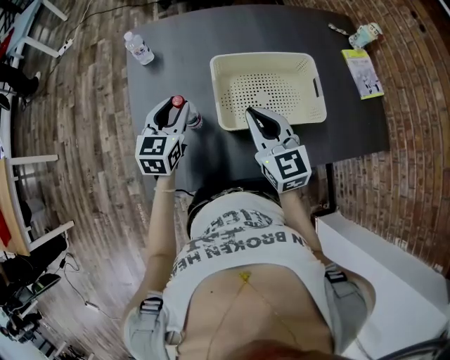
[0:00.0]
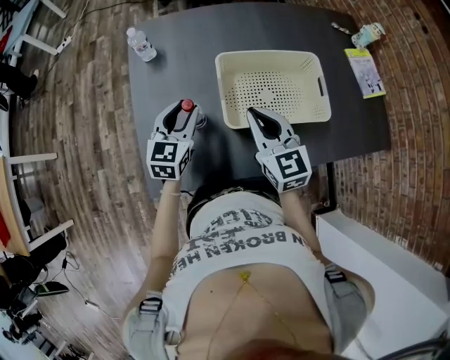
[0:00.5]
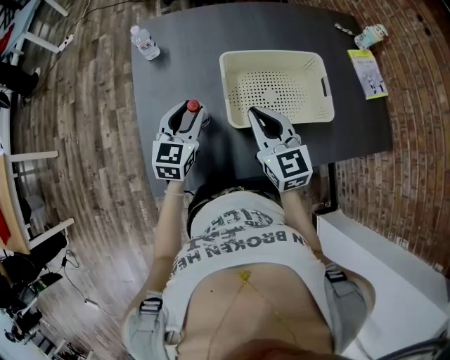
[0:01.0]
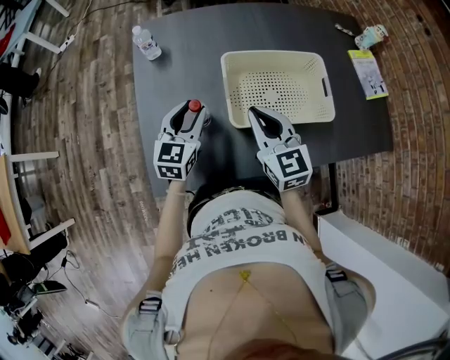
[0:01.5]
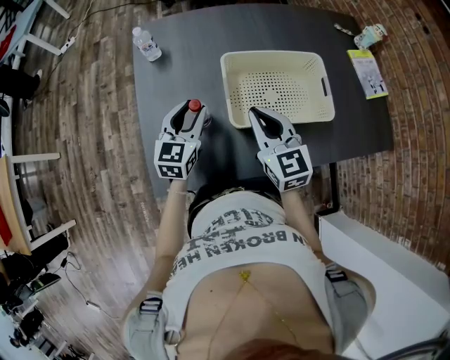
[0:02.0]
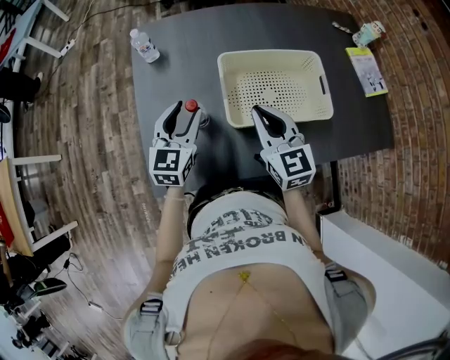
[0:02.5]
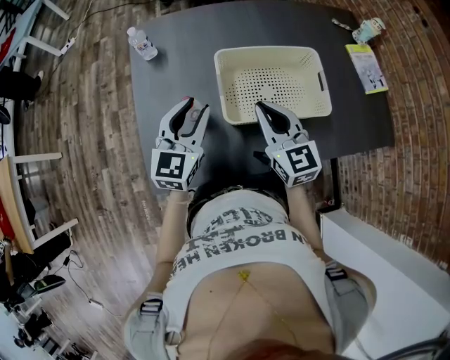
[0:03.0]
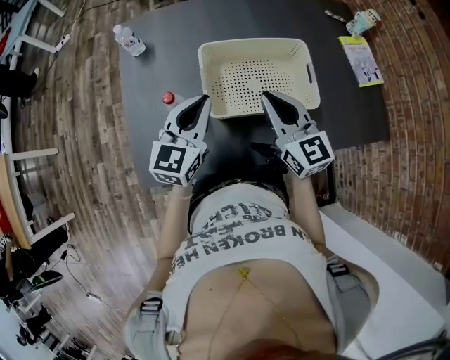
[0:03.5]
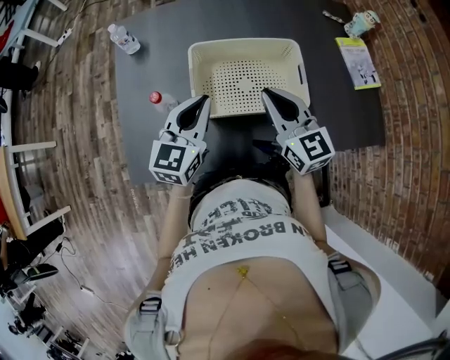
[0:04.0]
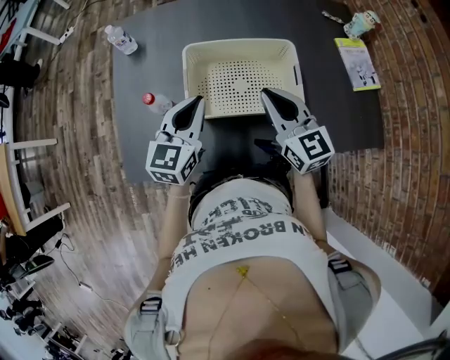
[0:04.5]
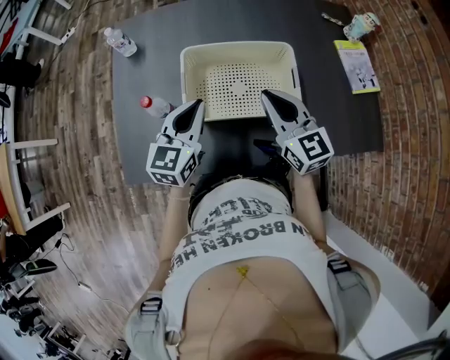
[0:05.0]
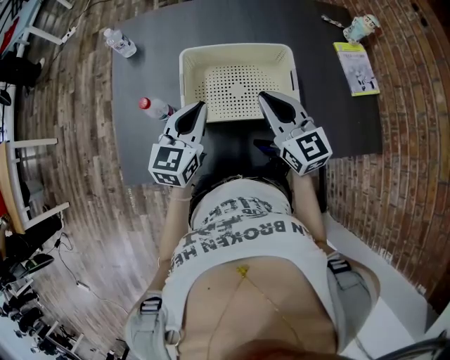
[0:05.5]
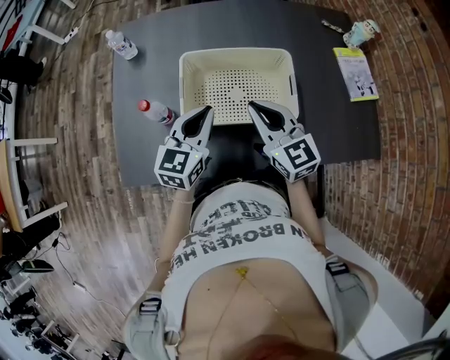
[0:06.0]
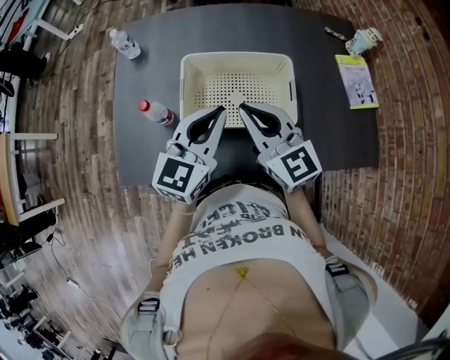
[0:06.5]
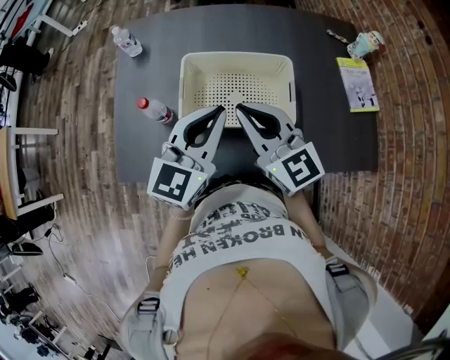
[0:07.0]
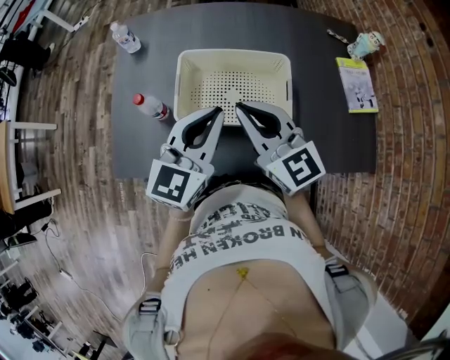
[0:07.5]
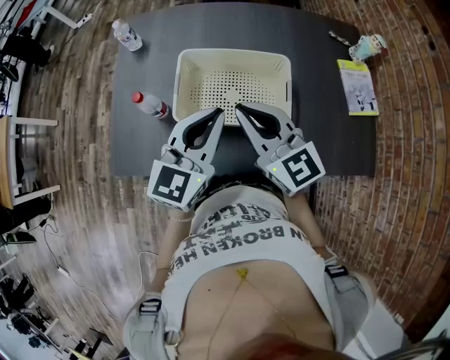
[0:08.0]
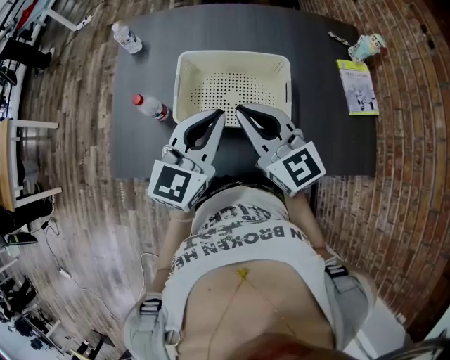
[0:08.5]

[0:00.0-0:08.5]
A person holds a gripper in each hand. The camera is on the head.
0:00.0 to 0:02.0: The grippers stay close to where they were, moving slightly.
0:02.0 to 0:04.0: The left gripper heads to the right and upward, covering some 15 cm, and closes, while the right gripper moves to the right, roughly 15 cm.
0:04.0 to 0:06.5: The left gripper shifts roughly 10 cm to the right and upward.
0:06.5 to 0:08.5: The grippers make only small movements.

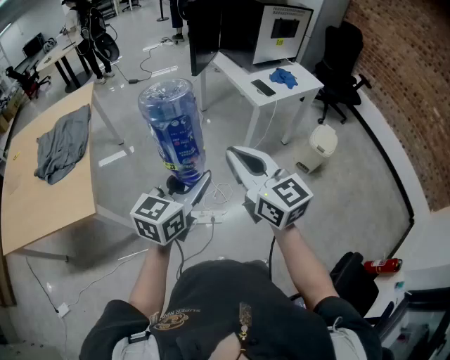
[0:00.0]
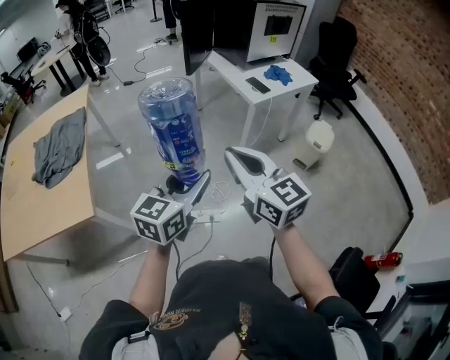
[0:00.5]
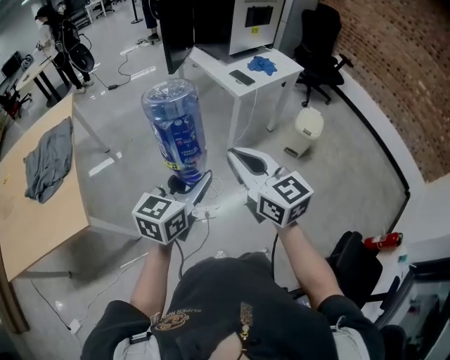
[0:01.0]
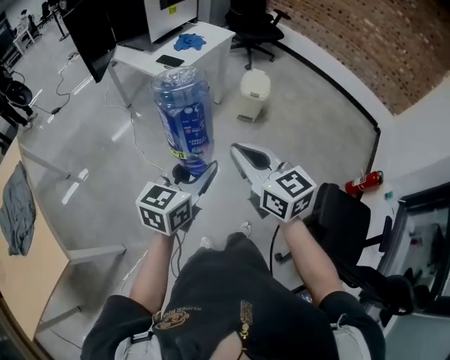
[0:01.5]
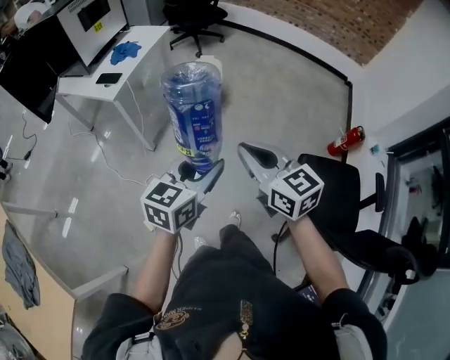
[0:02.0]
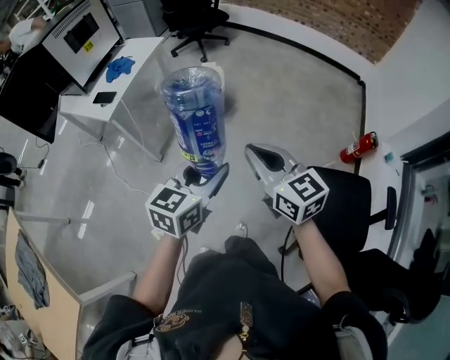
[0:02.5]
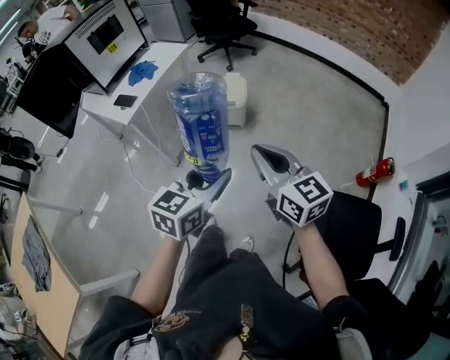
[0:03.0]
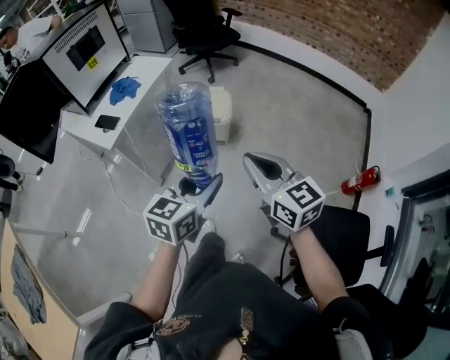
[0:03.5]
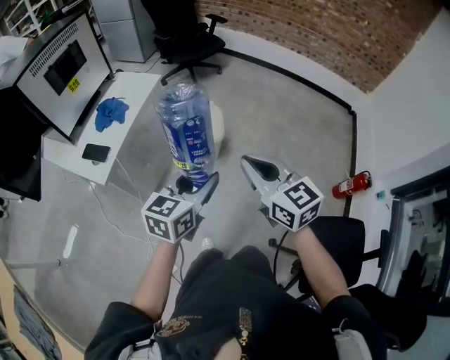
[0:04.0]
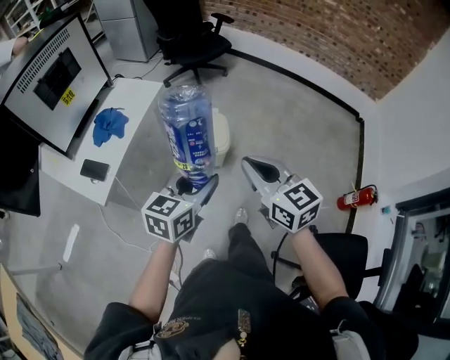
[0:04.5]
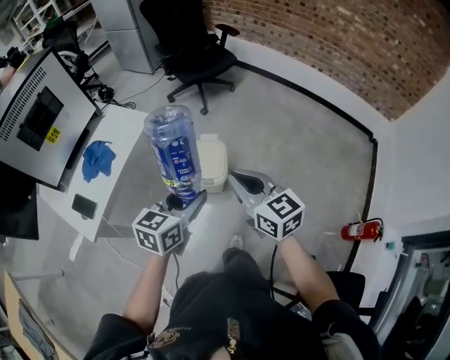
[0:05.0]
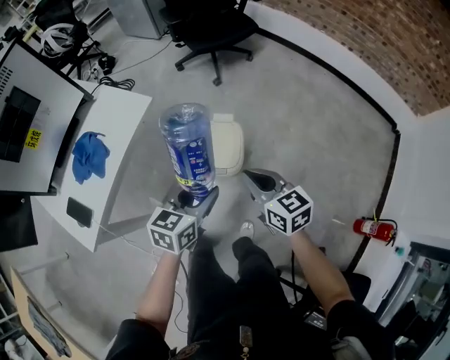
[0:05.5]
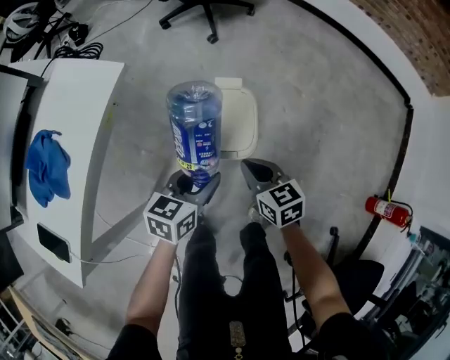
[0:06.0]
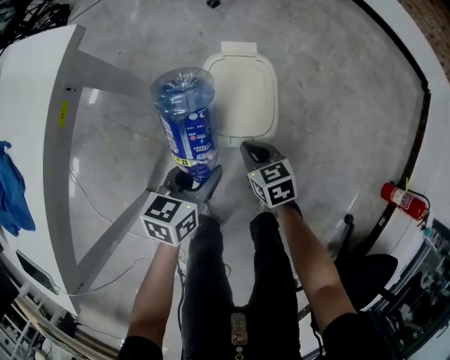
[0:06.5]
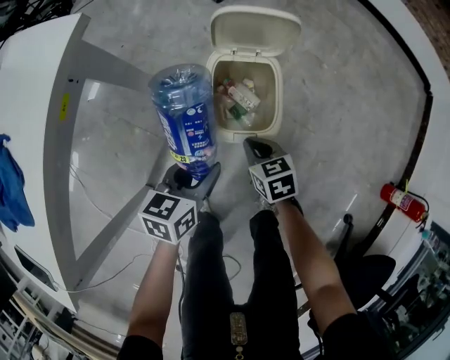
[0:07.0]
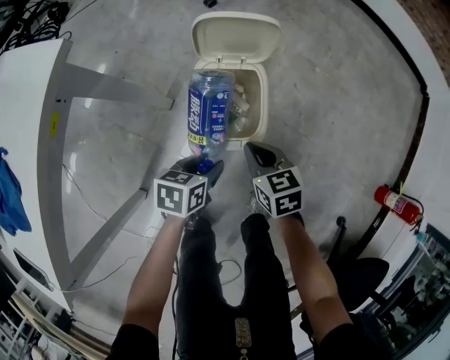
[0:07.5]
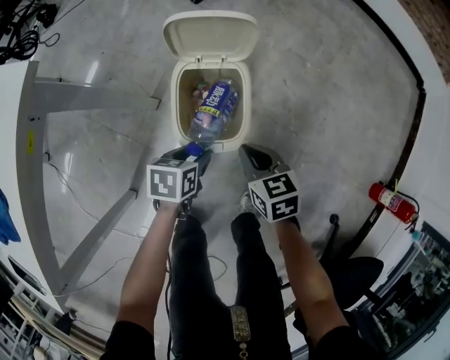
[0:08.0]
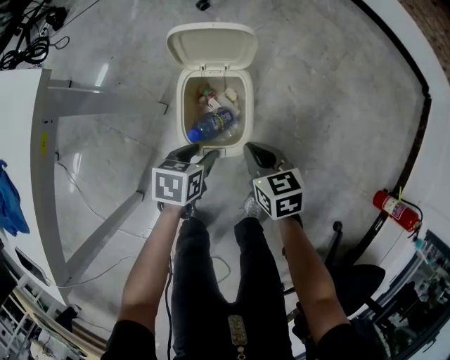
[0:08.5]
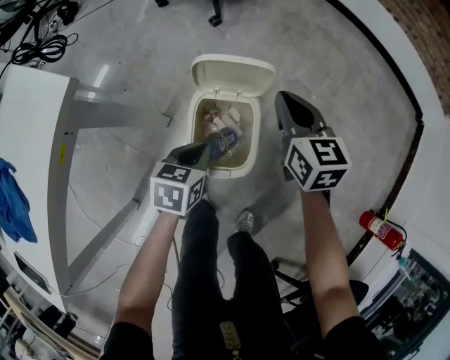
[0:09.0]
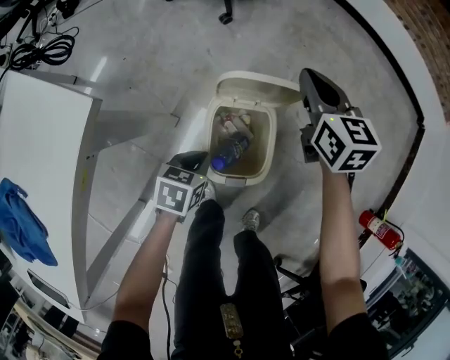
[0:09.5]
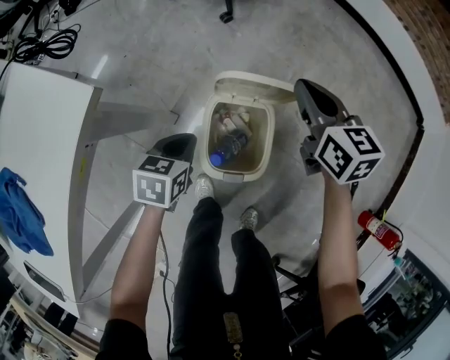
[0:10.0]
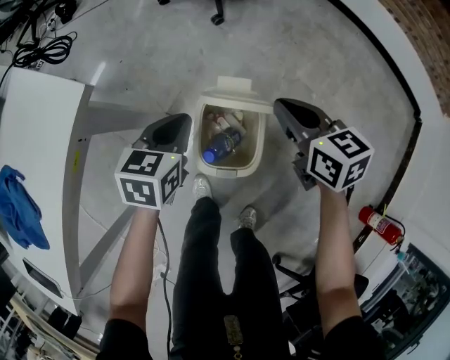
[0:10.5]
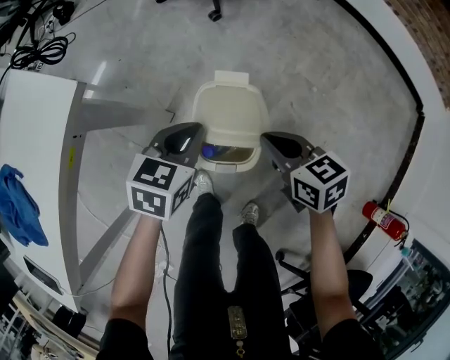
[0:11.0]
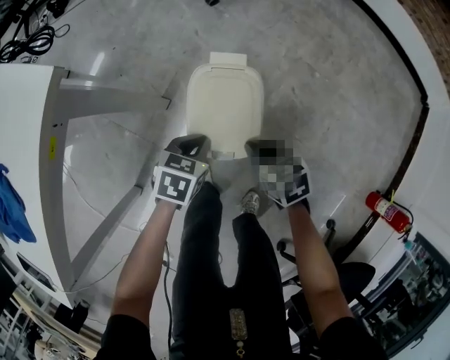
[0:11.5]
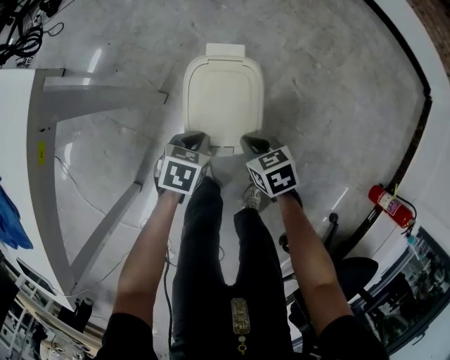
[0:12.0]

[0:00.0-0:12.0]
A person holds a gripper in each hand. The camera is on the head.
0:00.0 to 0:02.0: The right gripper changes place by approximately 40 cm, and swivels some 40 degrees, while the left gripper ends up roughly 40 cm from where it was, and rotates approximately 50 degrees.
0:02.0 to 0:04.0: Both grippers travel together forward, some 35 cm.
0:04.0 to 0:06.0: The right gripper is displaced downward and forward by approximately 60 cm, and rotates roughly 30 degrees, while the left gripper heads forward and downward, covering about 50 cm, and turns by some 20 degrees.
0:06.0 to 0:08.0: The right gripper heads downward, covering some 15 cm. Meanwhile the left gripper travels downward by approximately 20 cm, and turns by some 30 degrees.
0:08.0 to 0:10.0: The right gripper goes approximately 30 cm forward and upward. The left gripper shifts about 20 cm to the left, forward and upward, and closes its fingers.
0:10.0 to 0:12.0: The right gripper shifts roughly 30 cm backward and downward, and rotates some 30 degrees, while the left gripper travels downward, backward and to the right by roughly 15 cm.

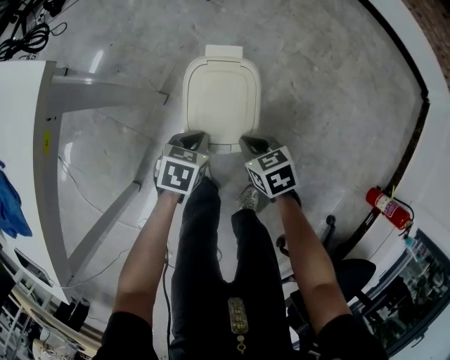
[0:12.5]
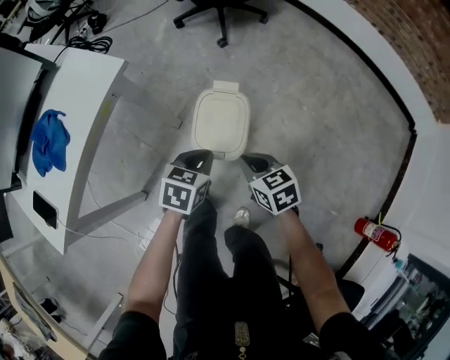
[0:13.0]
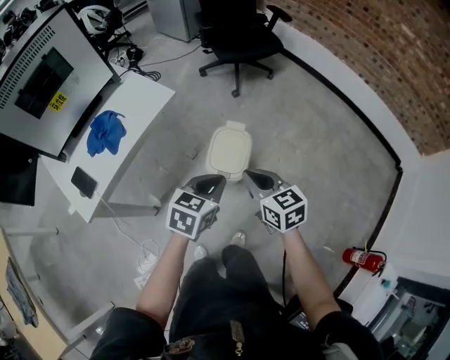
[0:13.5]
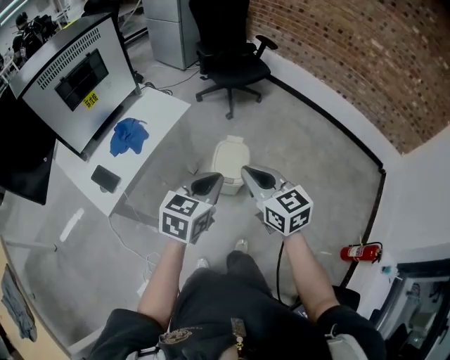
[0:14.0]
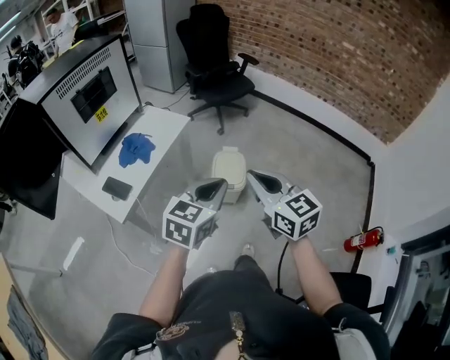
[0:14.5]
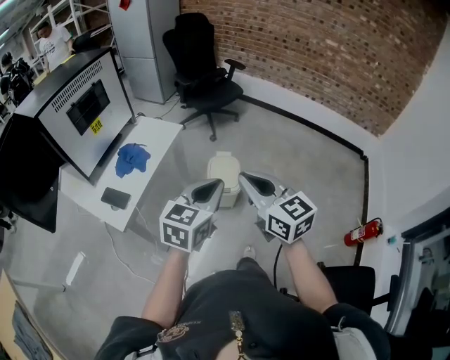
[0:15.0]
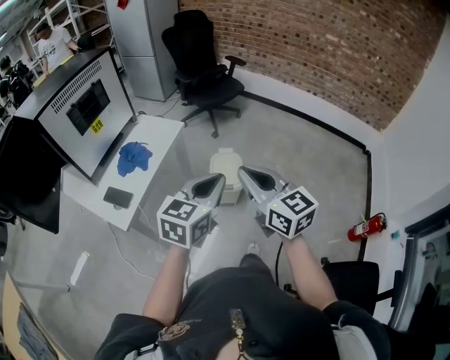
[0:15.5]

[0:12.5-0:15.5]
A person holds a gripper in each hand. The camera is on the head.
0:12.5 to 0:14.0: The left gripper travels upward and backward by roughly 60 cm, and tips its fingers upward by some 40 degrees. Meanwhile the right gripper goes about 60 cm upward, and tilts its fingers some 40 degrees upward.
0:14.0 to 0:15.5: Both grippers travel together backward and upward, roughly 15 cm.

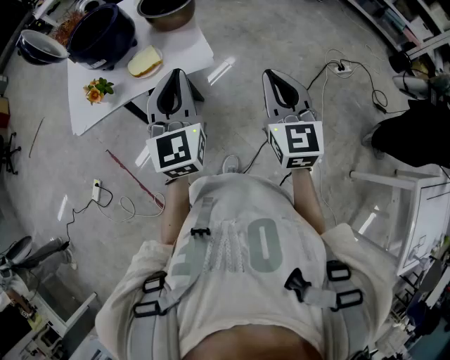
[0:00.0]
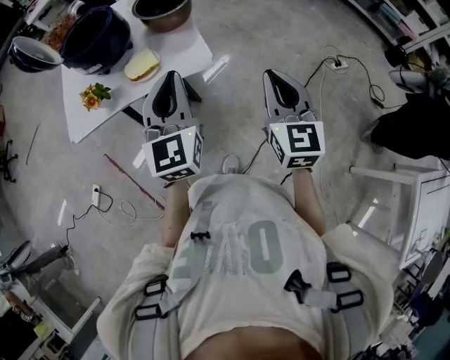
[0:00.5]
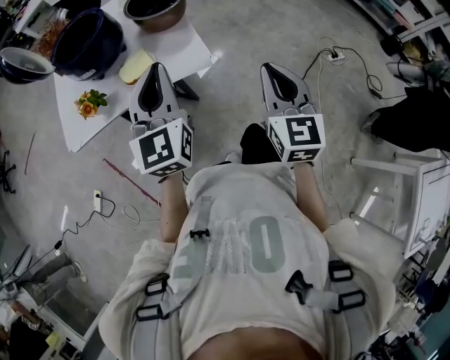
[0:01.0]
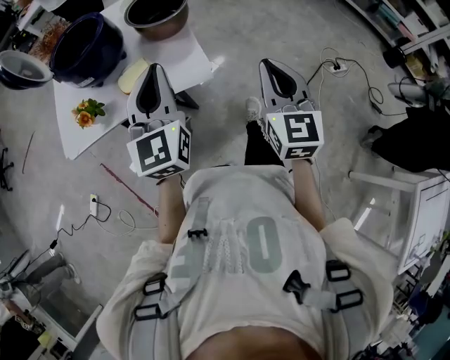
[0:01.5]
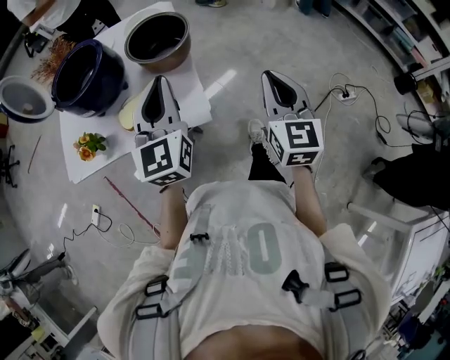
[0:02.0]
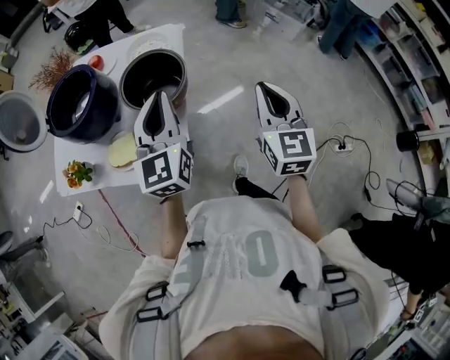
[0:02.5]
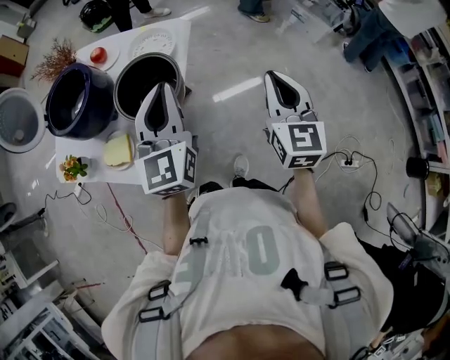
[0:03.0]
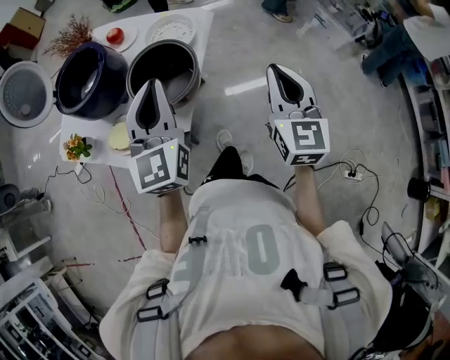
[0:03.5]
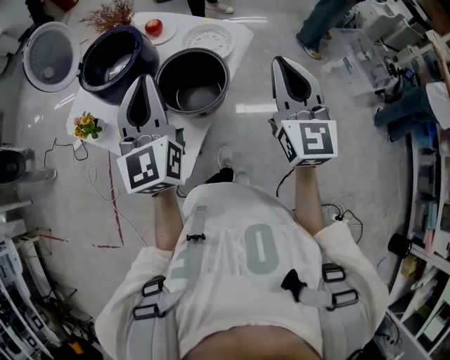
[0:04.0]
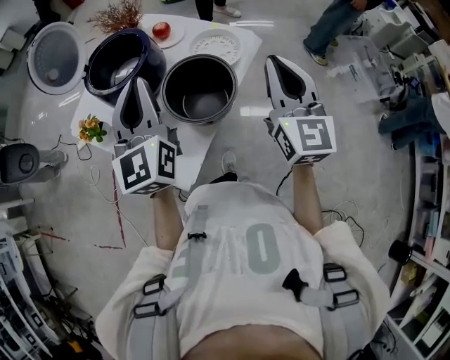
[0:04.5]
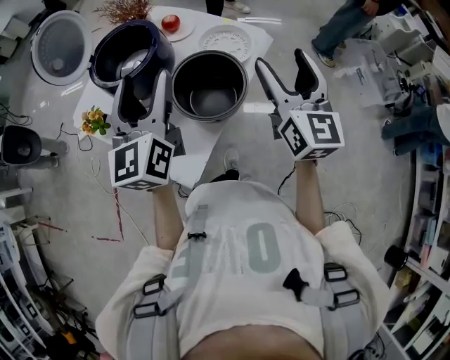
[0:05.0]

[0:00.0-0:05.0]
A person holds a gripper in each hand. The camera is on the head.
0:00.0 to 0:02.5: Both grippers travel together forward, some 40 cm.
0:02.5 to 0:05.0: The right gripper shifts by some 25 cm, turns by approximately 40 degrees, and opens up. The left gripper moves roughly 15 cm, turns by roughly 30 degrees, and opens.
